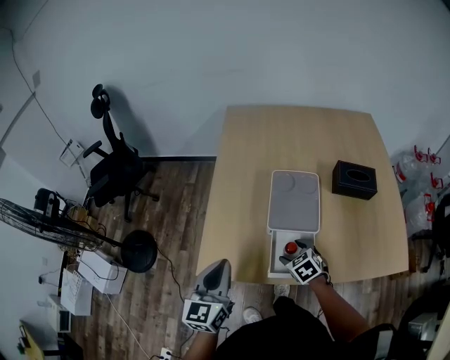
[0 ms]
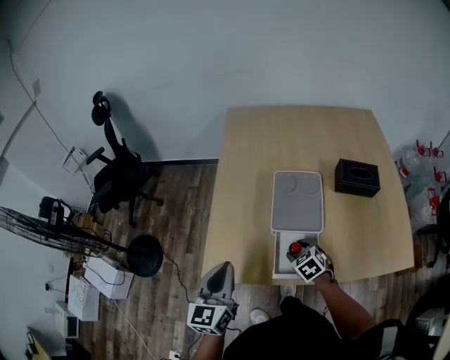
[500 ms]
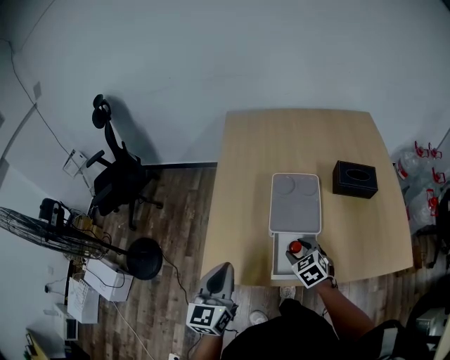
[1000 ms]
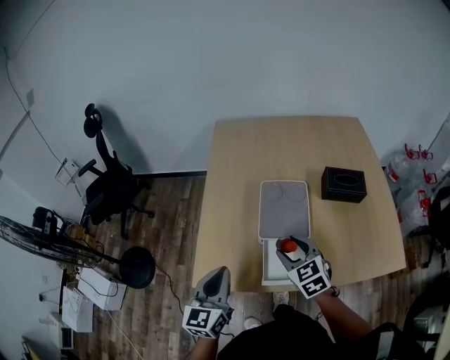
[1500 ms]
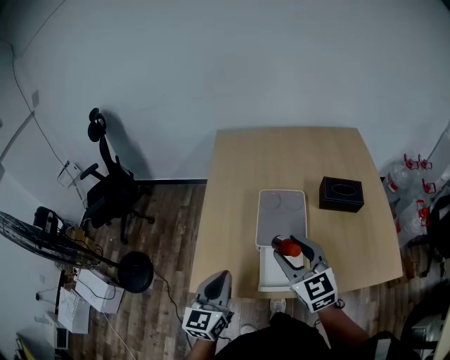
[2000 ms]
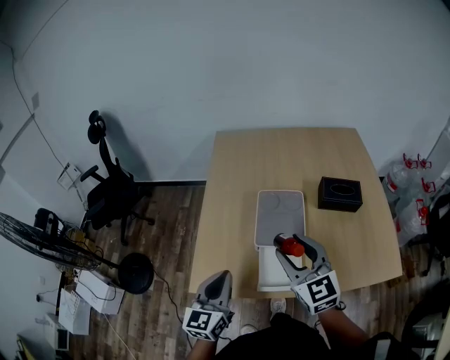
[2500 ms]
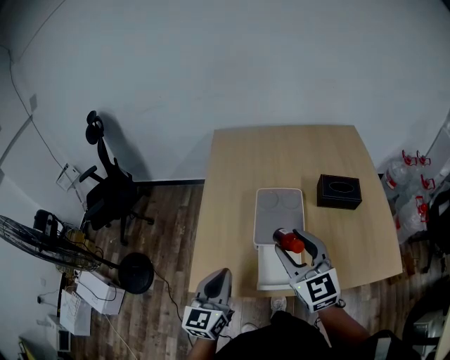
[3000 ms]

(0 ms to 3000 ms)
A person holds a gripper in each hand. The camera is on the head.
0 ms - 1500 ms: The right gripper is displaced upward by approximately 15 cm, and swivels about 20 degrees.
1500 ms - 3000 ms: The right gripper goes some 15 cm upward, and changes its angle by about 30 degrees.

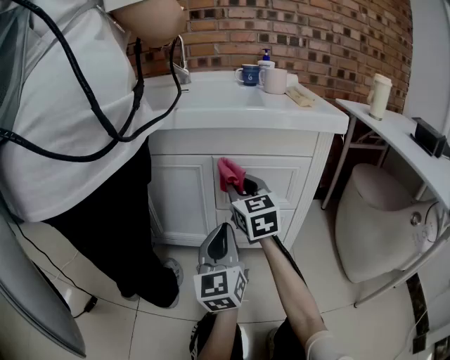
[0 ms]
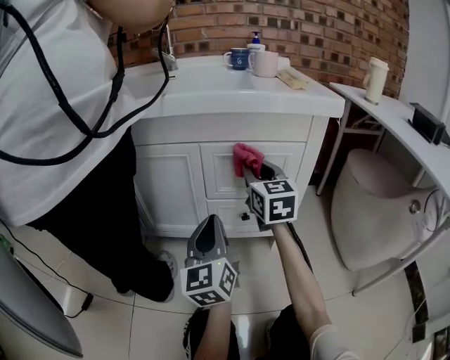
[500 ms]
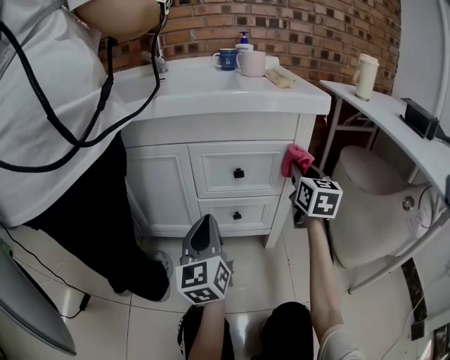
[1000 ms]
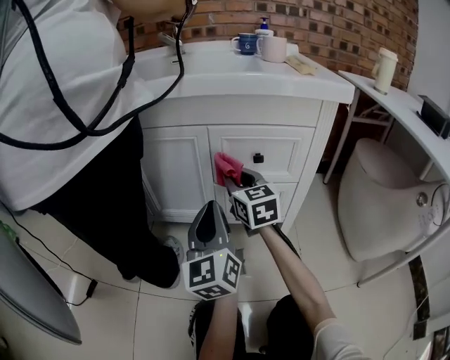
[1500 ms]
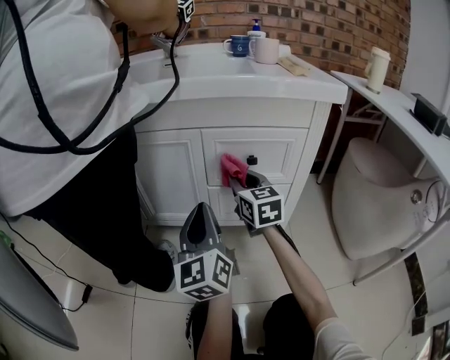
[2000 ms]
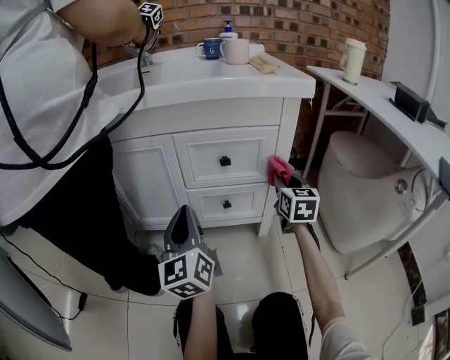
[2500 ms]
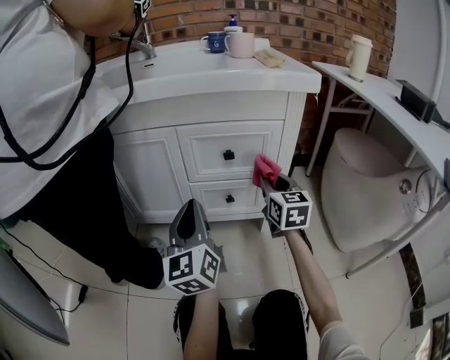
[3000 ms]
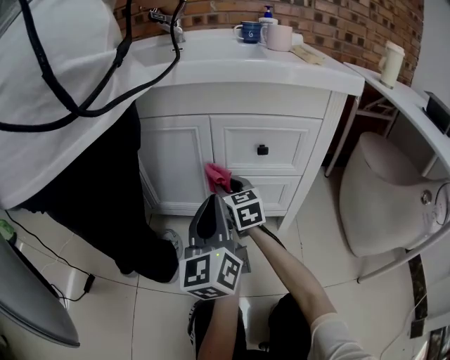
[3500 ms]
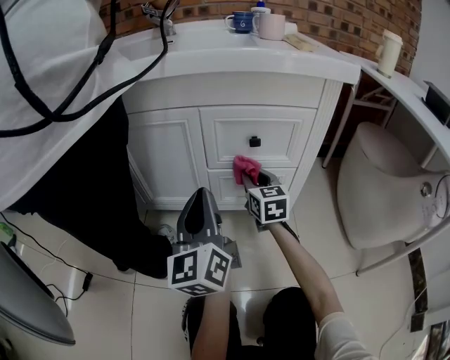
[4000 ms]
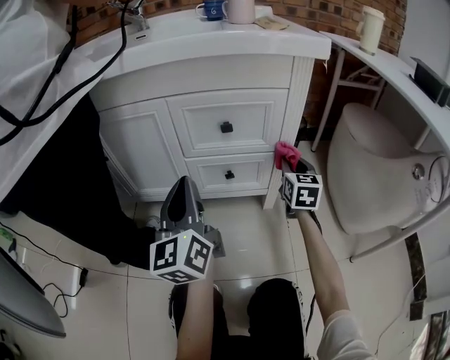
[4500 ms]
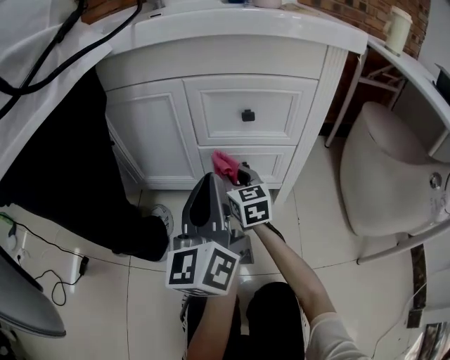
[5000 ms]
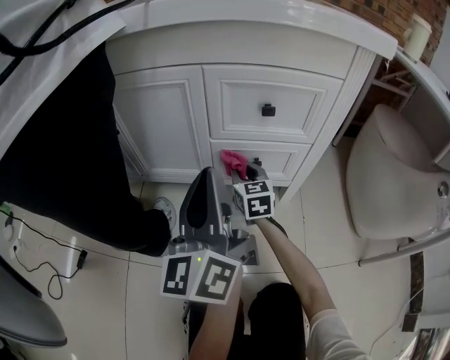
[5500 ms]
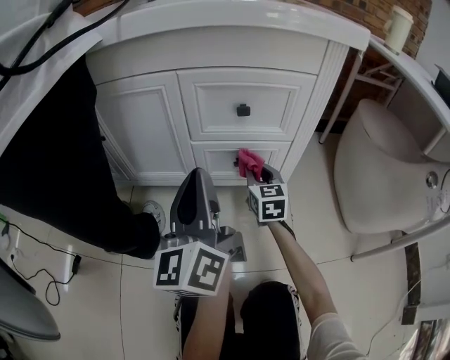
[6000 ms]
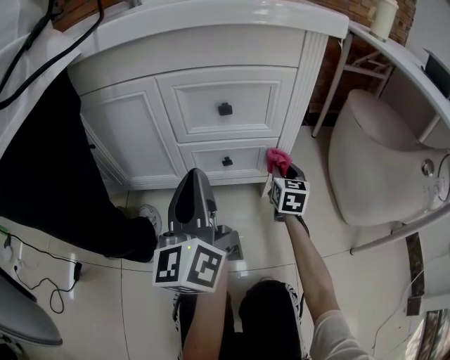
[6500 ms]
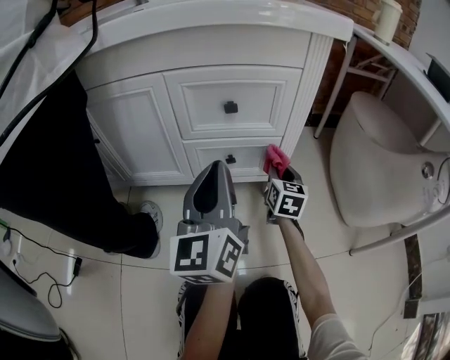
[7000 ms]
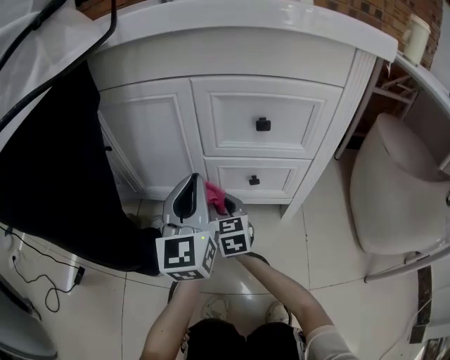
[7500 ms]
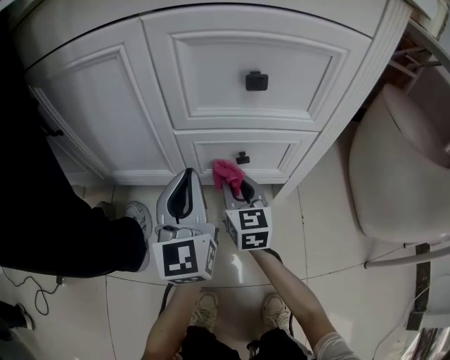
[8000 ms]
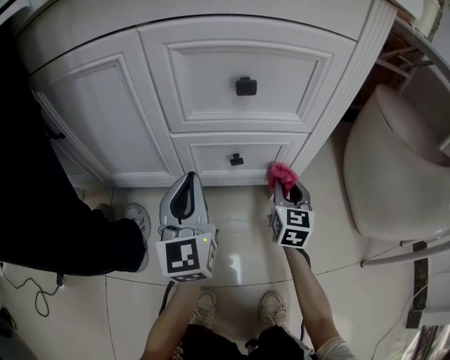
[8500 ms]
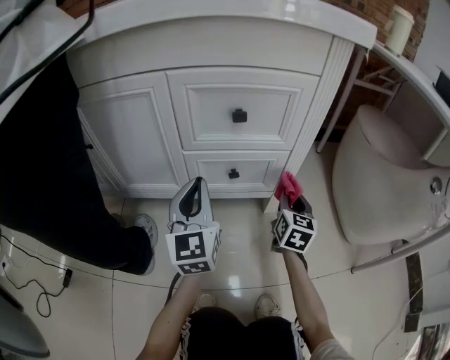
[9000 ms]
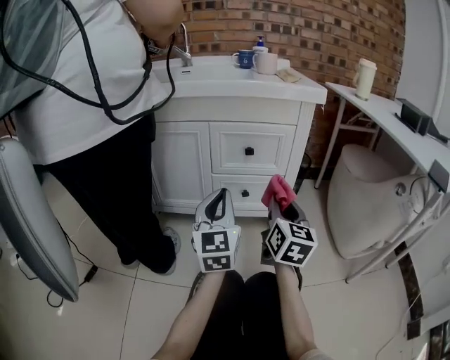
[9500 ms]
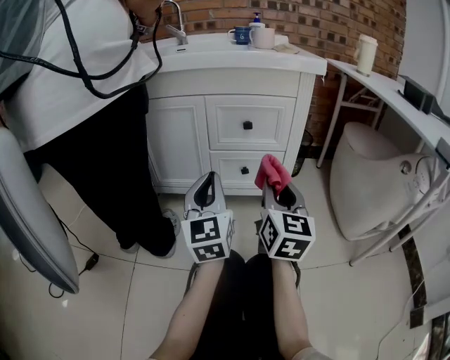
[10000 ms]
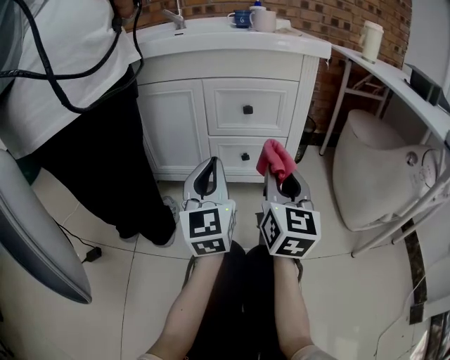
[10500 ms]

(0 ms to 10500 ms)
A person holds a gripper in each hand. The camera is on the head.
0 ms - 2000 ms: The right gripper travels downward by approximately 10 cm, and travels to the right and back again, approximately 25 cm each way.
2000 ms - 4000 ms: The right gripper goes left and right, roughly 30 cm each way, reversing 2 times.
4000 ms - 6500 ms: The left gripper shifts approximately 5 cm to the right. Meanwhile the right gripper swings left and right, about 25 cm each way, with 2 reversals, and turns by some 20 degrees.
6500 ms - 8500 ms: The left gripper goes approximately 20 cm downward and forward, and rotates roughly 30 degrees. Meanwhile the right gripper moves downward, approximately 10 cm, and goes to the left and returns, some 30 cm each way.
8500 ms - 10500 ms: The right gripper travels upward and backward by some 40 cm, and turns by roughly 20 degrees, while the left gripper heads backward and upward, covering about 25 cm.

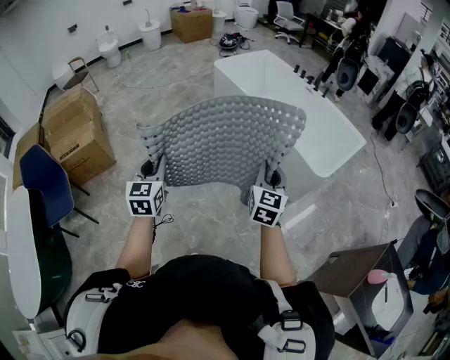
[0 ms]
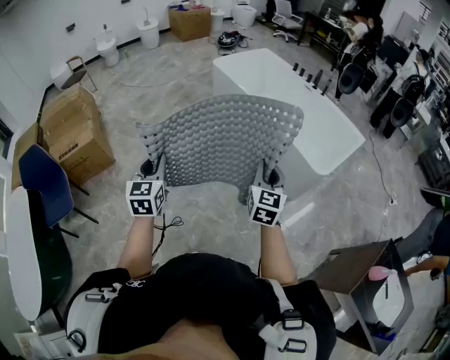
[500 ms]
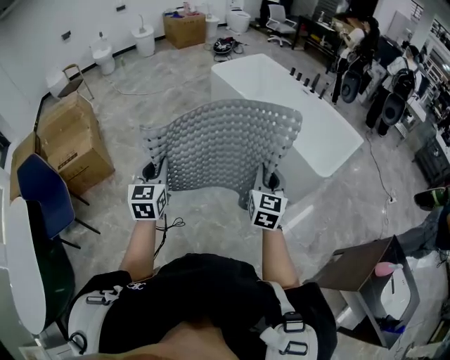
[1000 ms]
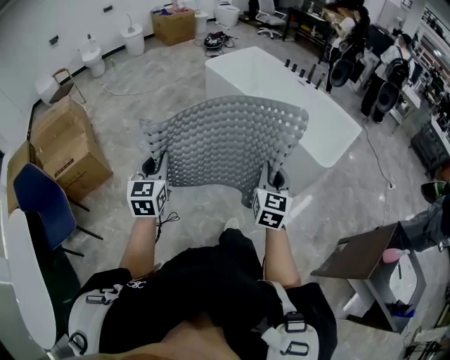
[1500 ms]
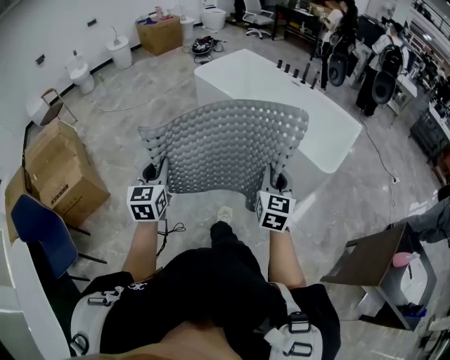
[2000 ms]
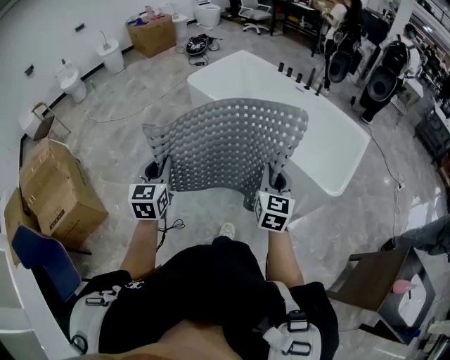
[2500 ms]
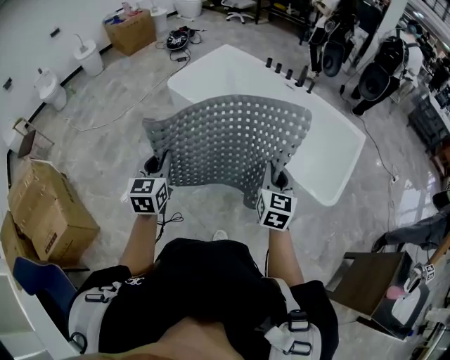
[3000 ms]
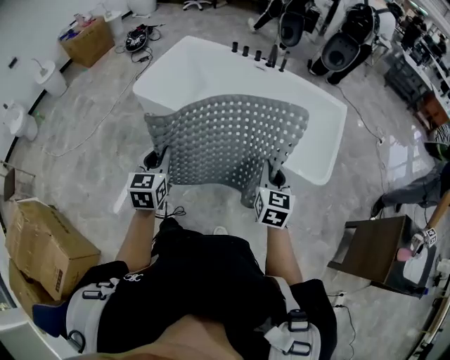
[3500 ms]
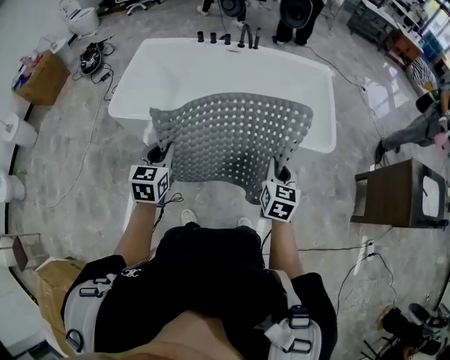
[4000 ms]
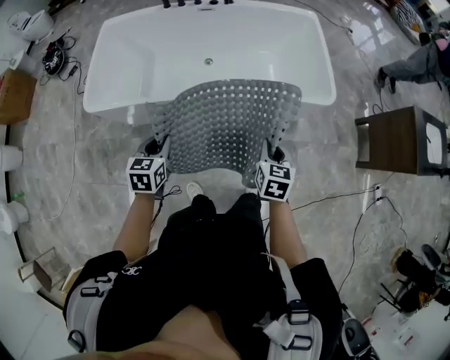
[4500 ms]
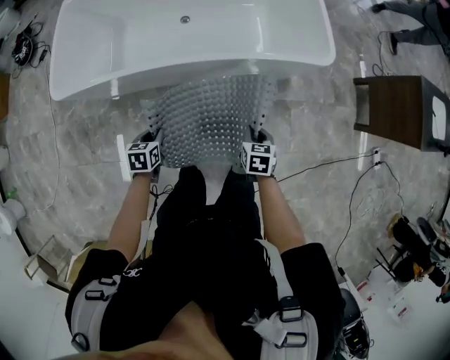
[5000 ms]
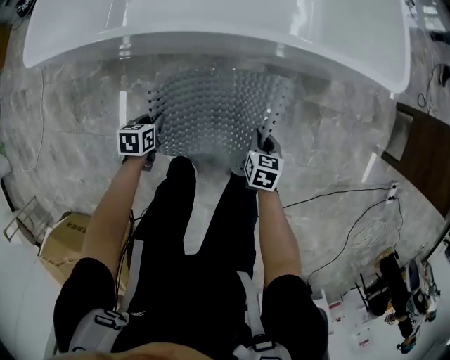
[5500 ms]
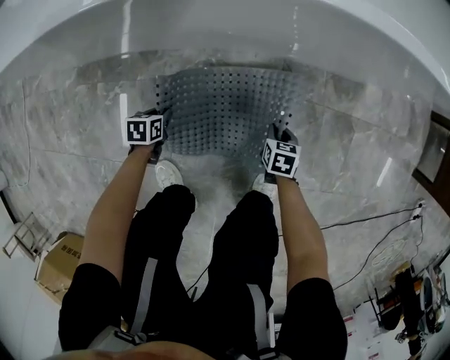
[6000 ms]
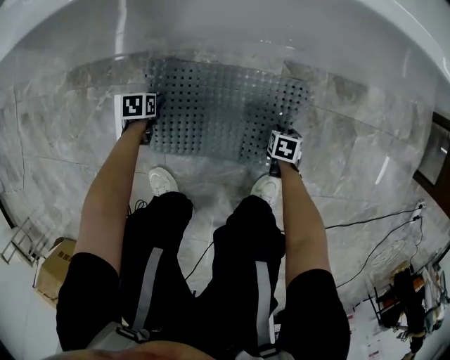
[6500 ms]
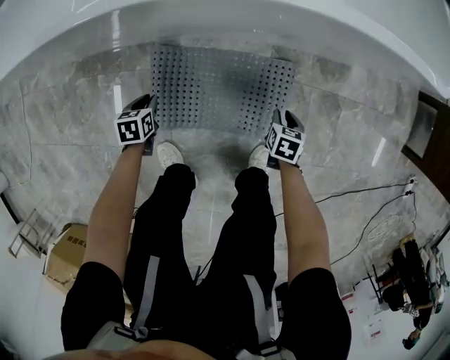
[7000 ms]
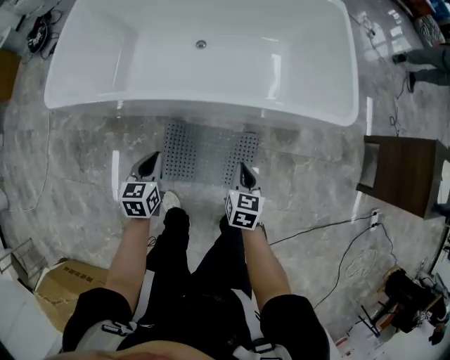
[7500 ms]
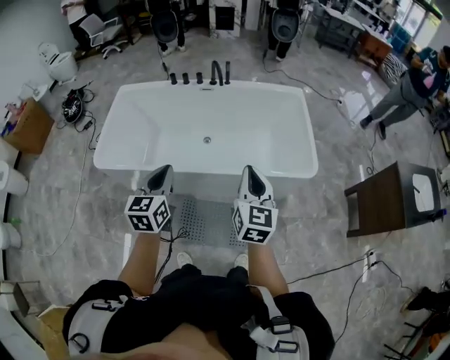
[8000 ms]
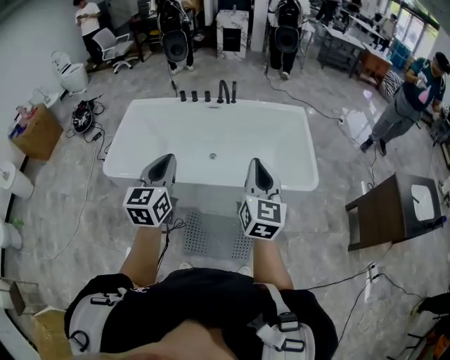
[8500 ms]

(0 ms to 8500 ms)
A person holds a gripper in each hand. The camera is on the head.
0 ms - 2000 ms: The right gripper shifts some 10 cm forward and to the left; the left gripper shifts about 15 cm forward and to the left.
2000 ms - 4000 ms: The left gripper ends up approximately 60 cm from where it was, and swivels about 50 degrees. Meanwhile the right gripper shifts by about 40 cm, and turns by approximately 40 degrees.
4000 ms - 6500 ms: Both grippers move downward, roughly 90 cm. The left gripper tilts its fingers some 50 degrees downward, and opens, while the right gripper tips its fingers downward by some 50 degrees.
6500 ms - 8500 ms: Both grippers travel together upward, some 1 m. The left gripper points its fingers some 70 degrees further upward, and closes up. Meanwhile the right gripper angles its fingers upward, by about 80 degrees, and closes.

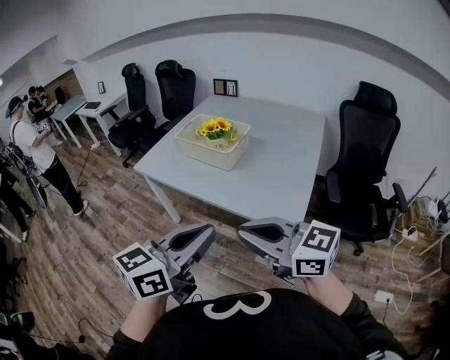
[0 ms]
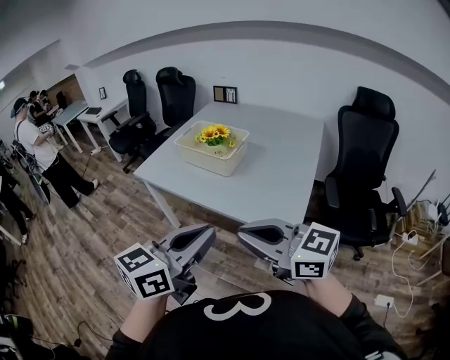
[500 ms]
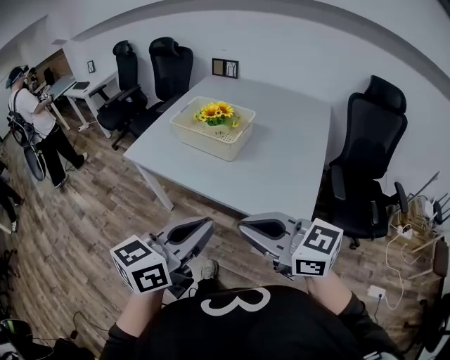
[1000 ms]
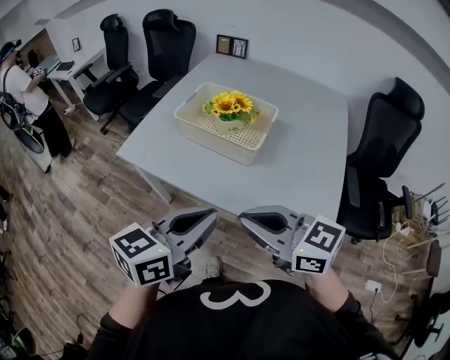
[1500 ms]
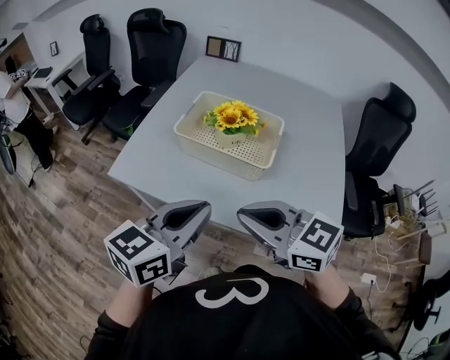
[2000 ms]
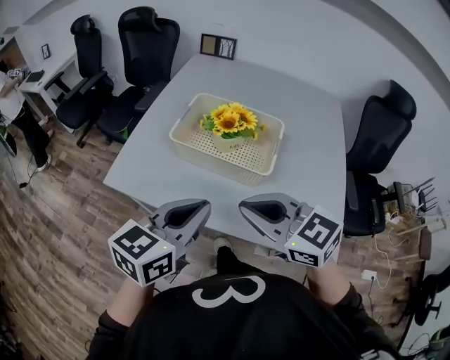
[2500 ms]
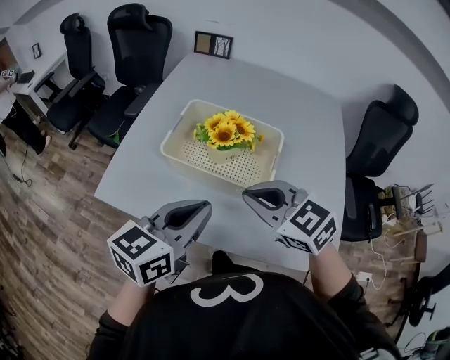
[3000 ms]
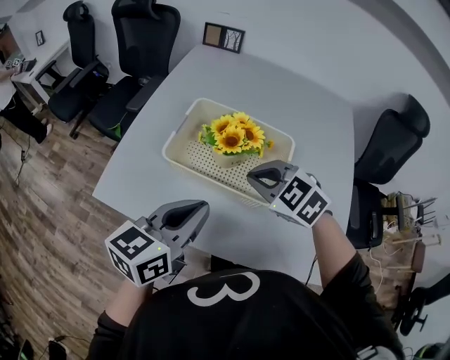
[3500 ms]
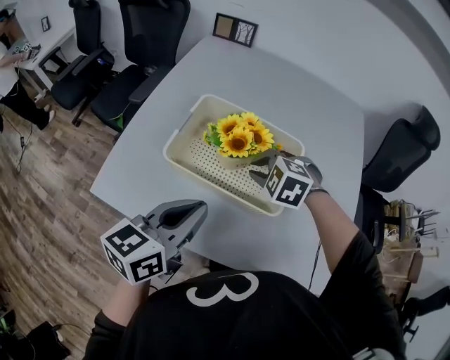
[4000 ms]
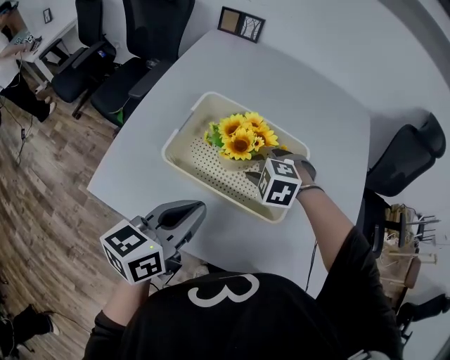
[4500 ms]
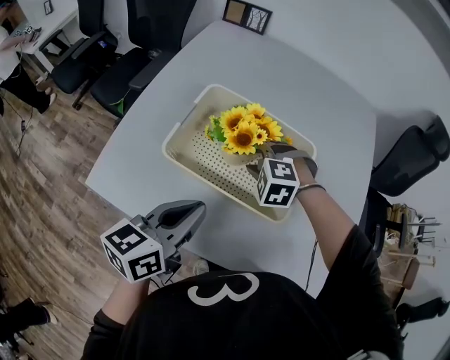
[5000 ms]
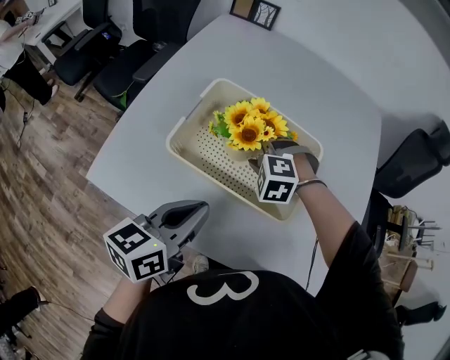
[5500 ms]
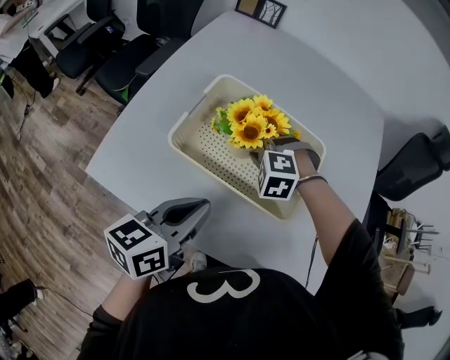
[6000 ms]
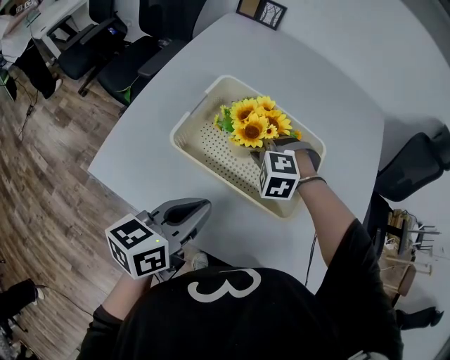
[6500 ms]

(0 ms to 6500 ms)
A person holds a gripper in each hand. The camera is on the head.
0 ms - 2000 ms: The grippers both shift forward and to the left by approximately 35 cm.
2000 ms - 4500 ms: The left gripper heads forward and downward, covering approximately 20 cm; the right gripper shifts roughly 35 cm forward and downward, tilts its fingers some 50 degrees downward, and opens.
4500 ms - 6500 ms: The grippers move only a little.
